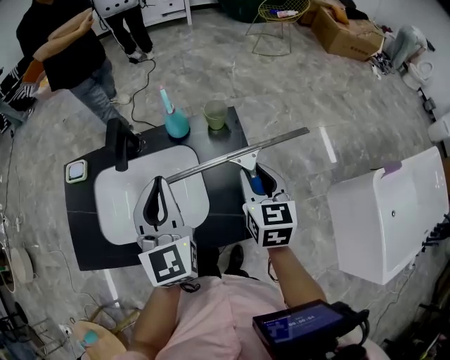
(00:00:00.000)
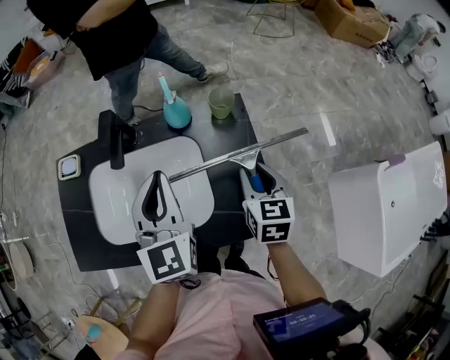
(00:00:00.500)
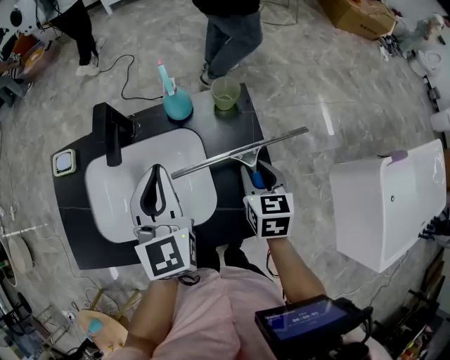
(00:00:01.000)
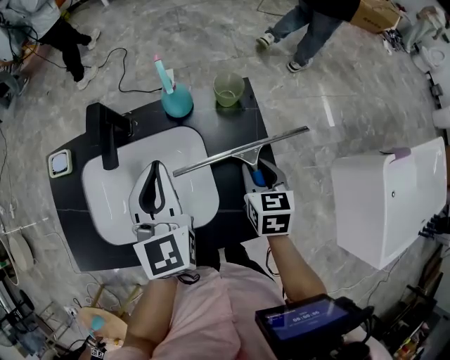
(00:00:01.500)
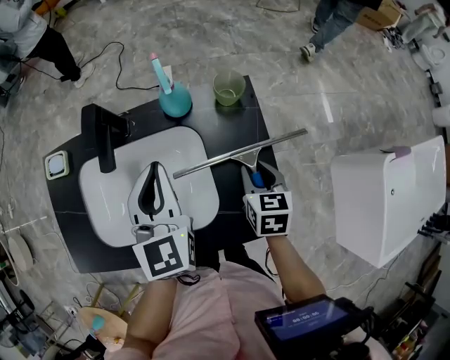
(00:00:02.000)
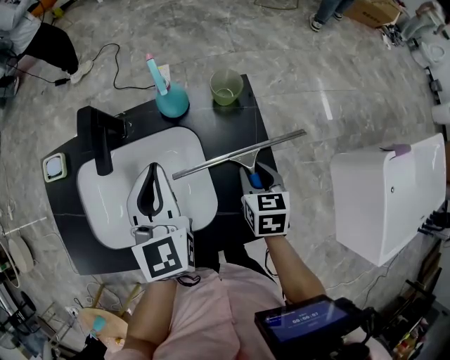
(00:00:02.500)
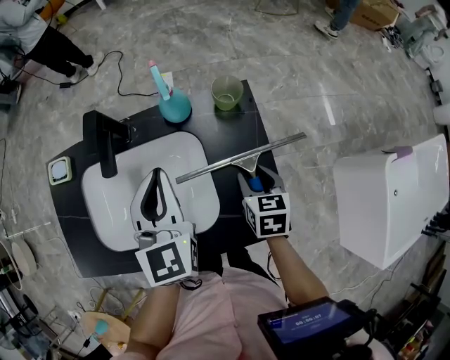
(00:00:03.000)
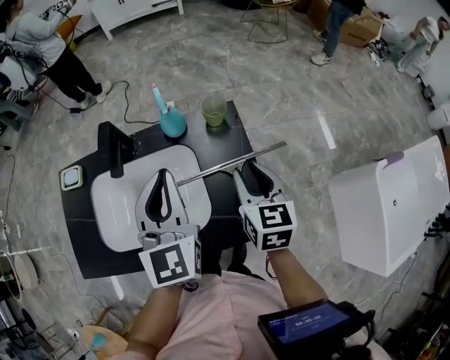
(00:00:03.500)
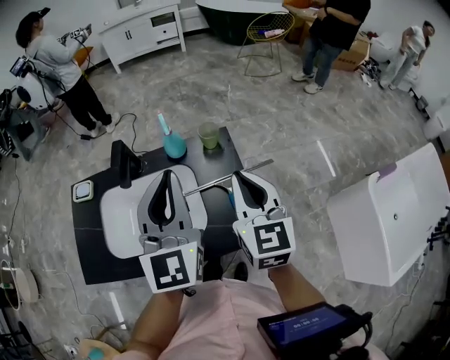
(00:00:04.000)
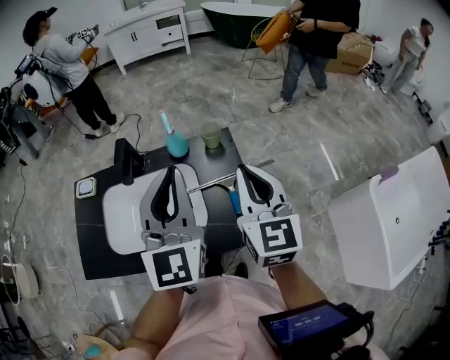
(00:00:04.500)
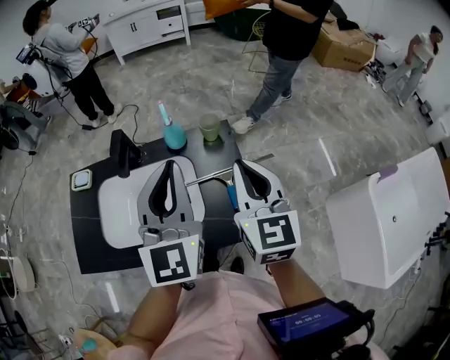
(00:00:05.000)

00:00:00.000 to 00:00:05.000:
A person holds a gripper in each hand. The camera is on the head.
00:00:00.000 to 00:00:02.500: The left gripper moves downward and forward, some 10 cm, while the right gripper goes roughly 15 cm downward, and changes its angle by approximately 20 degrees.
00:00:02.500 to 00:00:05.000: The right gripper moves upward, about 30 cm, points its fingers about 40 degrees further upward, and closes its fingers, while the left gripper is displaced upward, backward and to the right by some 20 cm, and swivels some 20 degrees.

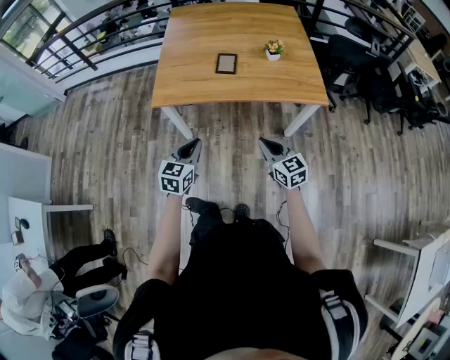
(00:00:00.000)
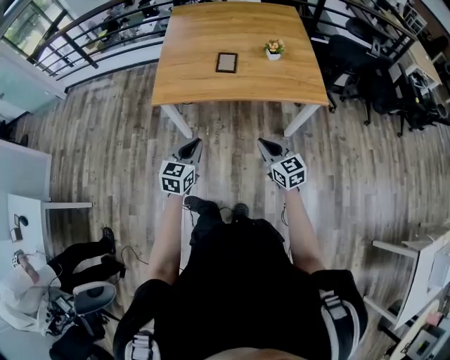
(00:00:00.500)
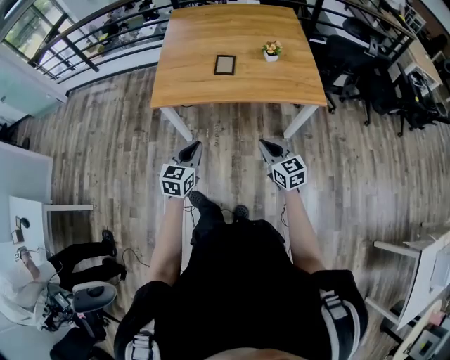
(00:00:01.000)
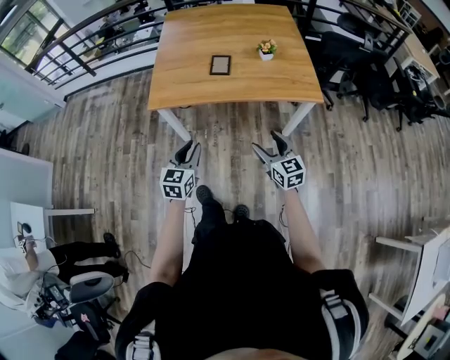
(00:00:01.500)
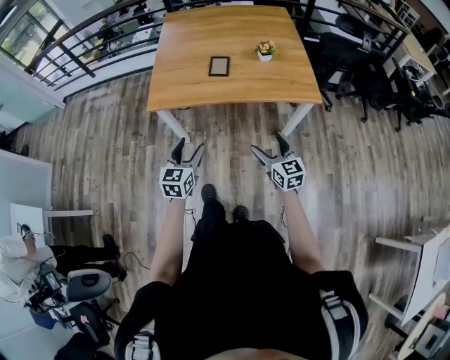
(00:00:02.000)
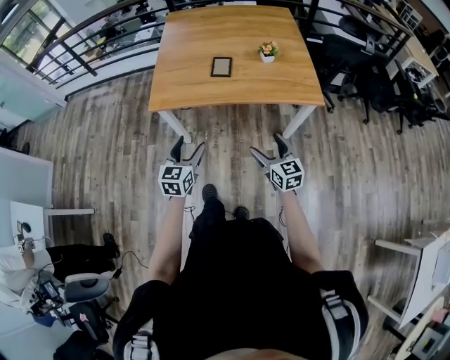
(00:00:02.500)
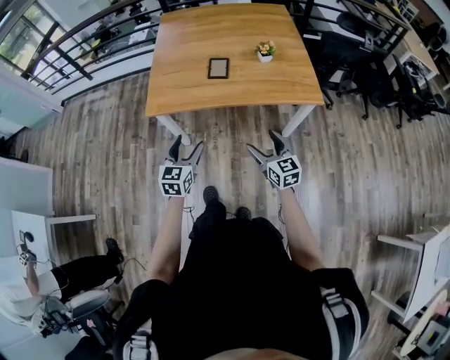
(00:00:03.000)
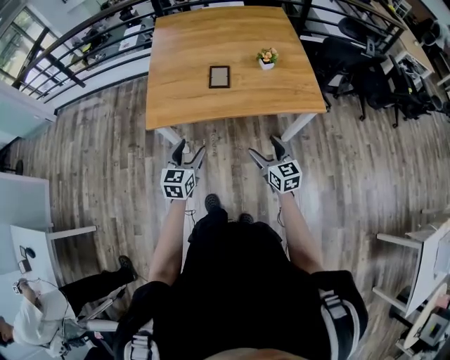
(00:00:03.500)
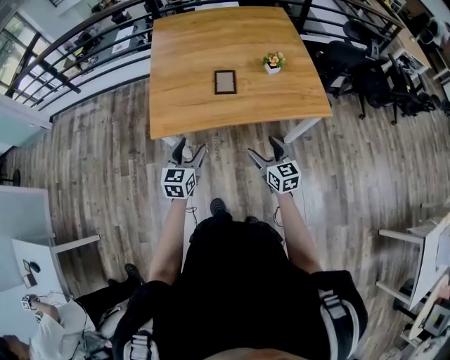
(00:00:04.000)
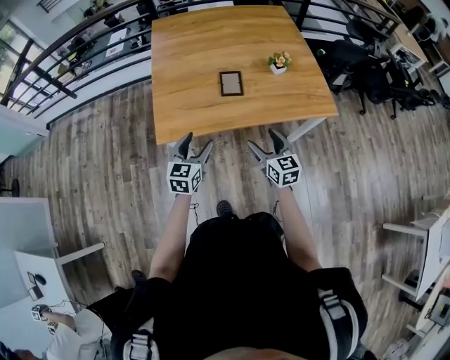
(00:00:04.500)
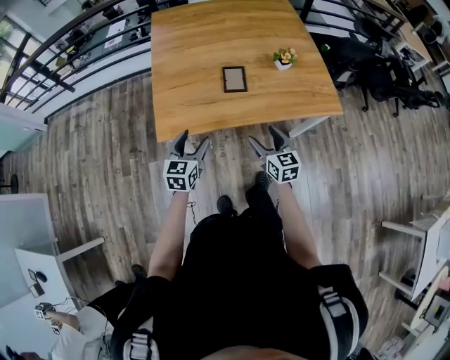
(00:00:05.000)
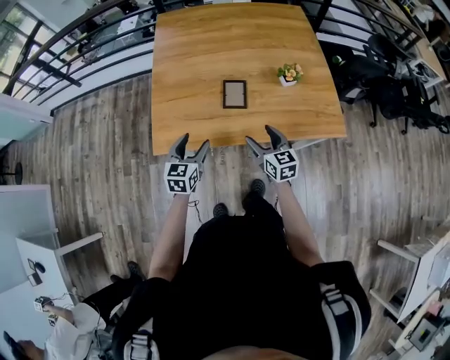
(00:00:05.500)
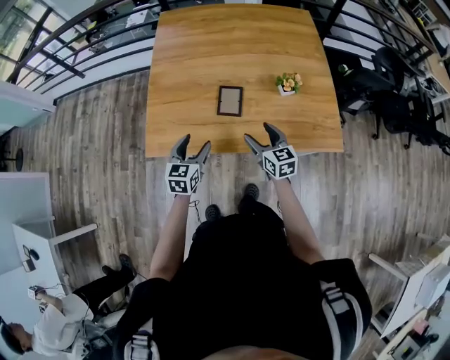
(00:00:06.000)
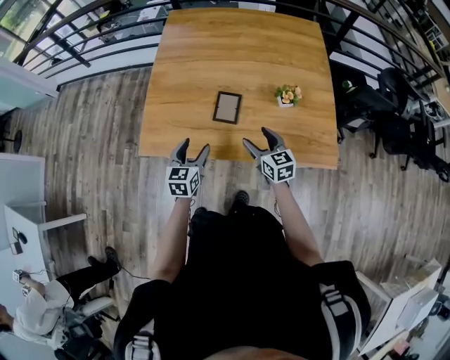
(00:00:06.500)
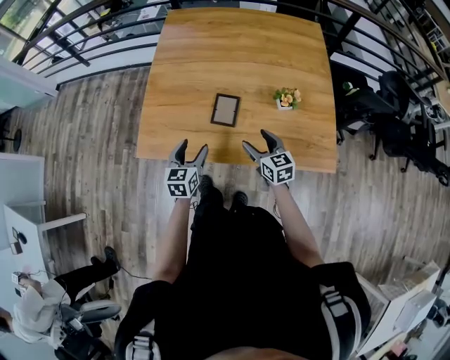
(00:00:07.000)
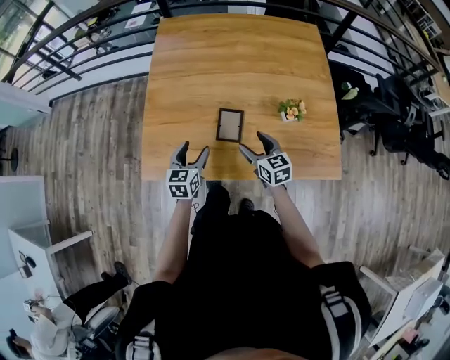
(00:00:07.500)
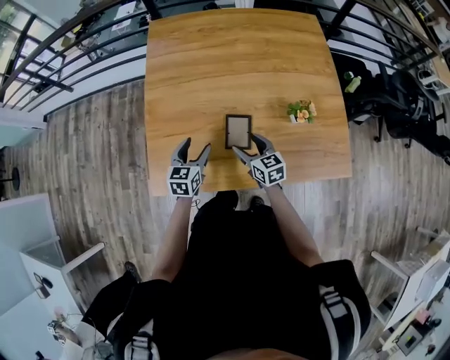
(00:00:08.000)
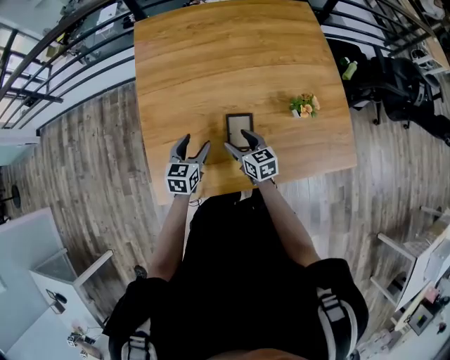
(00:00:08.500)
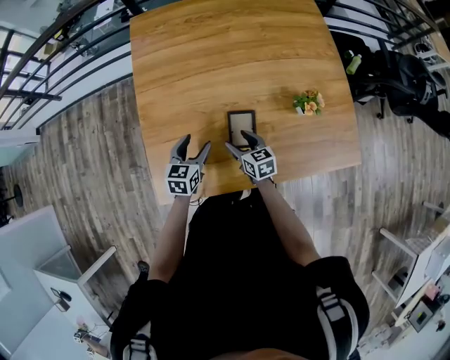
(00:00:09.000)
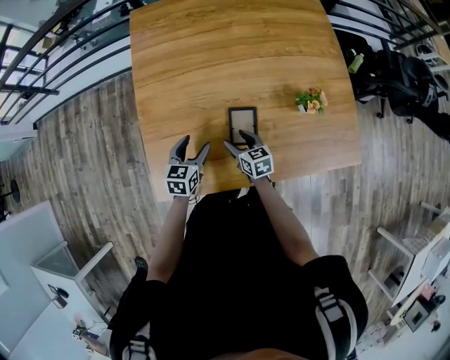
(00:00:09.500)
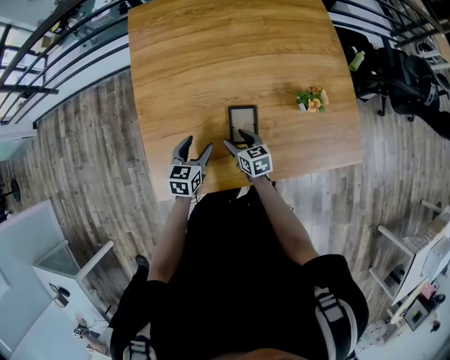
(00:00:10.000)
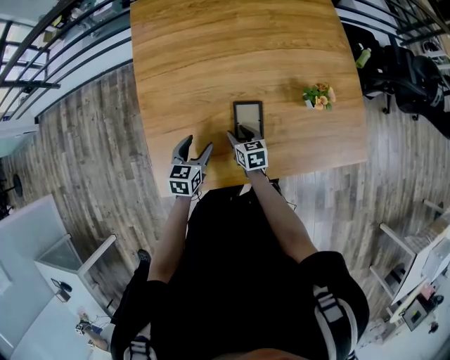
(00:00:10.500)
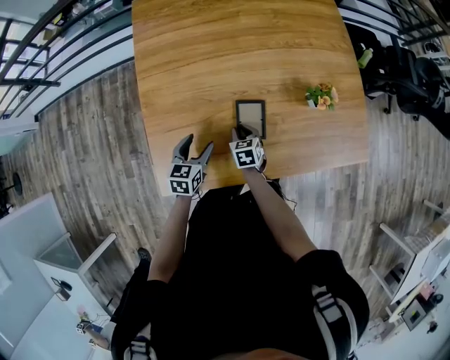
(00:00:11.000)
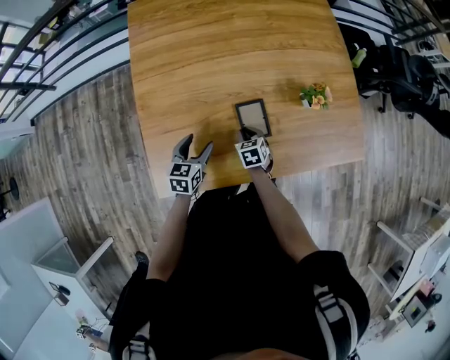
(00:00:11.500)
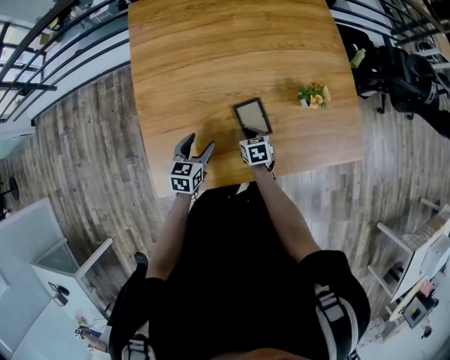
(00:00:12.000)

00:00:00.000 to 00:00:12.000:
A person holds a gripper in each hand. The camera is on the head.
00:00:00.000 to 00:00:02.000: The right gripper opens. The left gripper opens.
00:00:02.000 to 00:00:04.000: The right gripper shifts some 15 cm forward and to the left. The left gripper moves forward, some 15 cm.
00:00:04.000 to 00:00:06.000: Both grippers move forward, about 20 cm.
00:00:06.000 to 00:00:08.000: The right gripper heads forward and to the left, covering roughly 15 cm. The left gripper travels forward by roughly 20 cm.
00:00:08.000 to 00:00:10.000: The right gripper goes approximately 10 cm downward and to the left; the left gripper is displaced downward by some 5 cm.
00:00:10.000 to 00:00:12.000: The right gripper shifts by approximately 5 cm, turns by roughly 20 degrees, and closes its fingers.

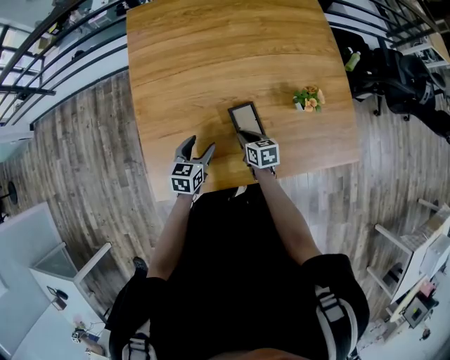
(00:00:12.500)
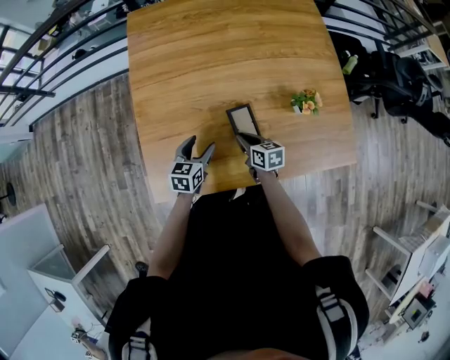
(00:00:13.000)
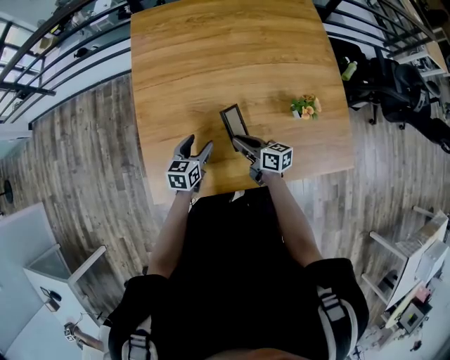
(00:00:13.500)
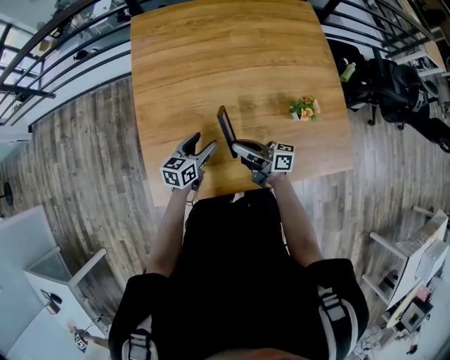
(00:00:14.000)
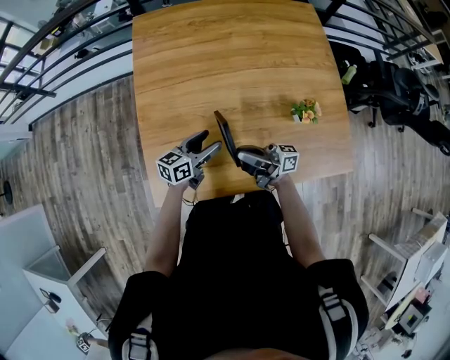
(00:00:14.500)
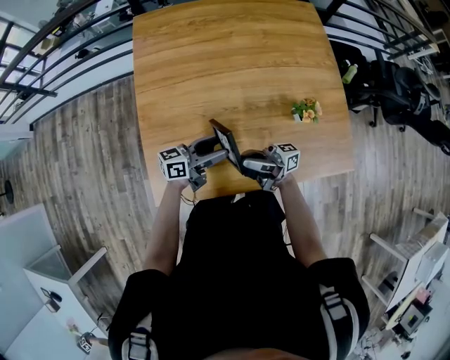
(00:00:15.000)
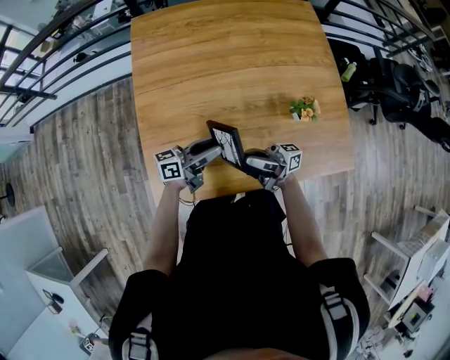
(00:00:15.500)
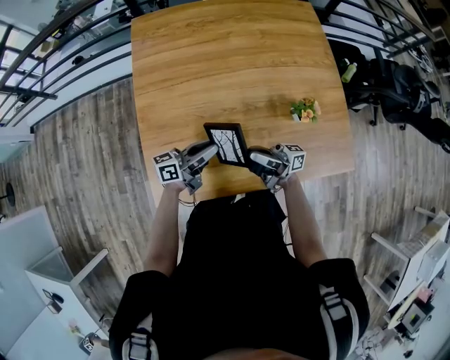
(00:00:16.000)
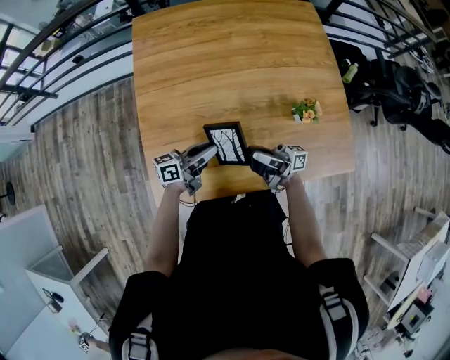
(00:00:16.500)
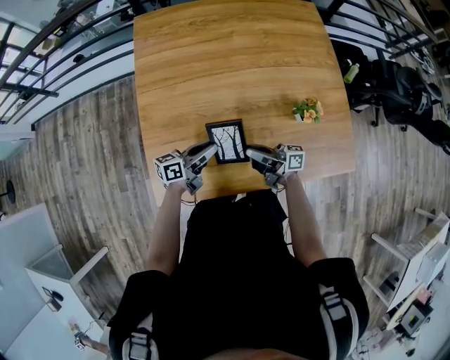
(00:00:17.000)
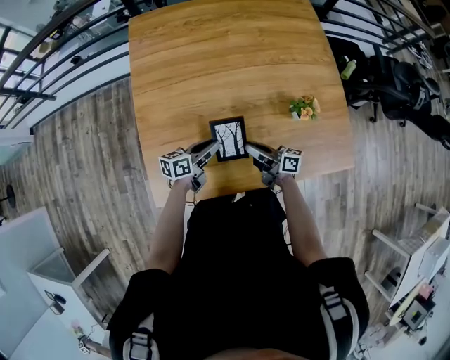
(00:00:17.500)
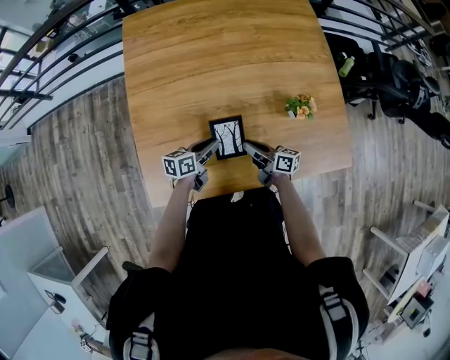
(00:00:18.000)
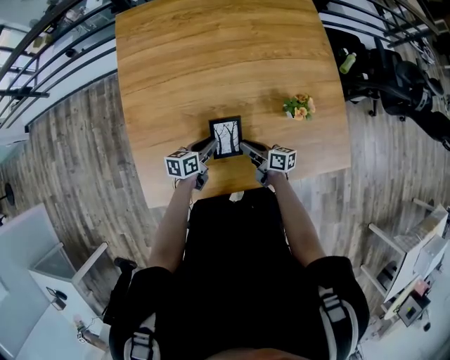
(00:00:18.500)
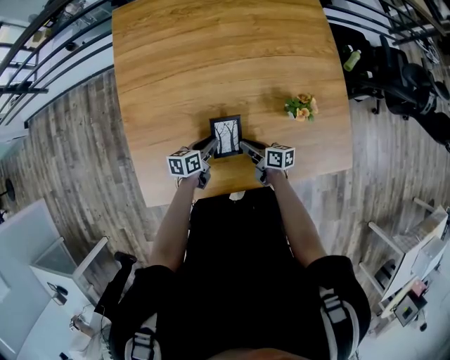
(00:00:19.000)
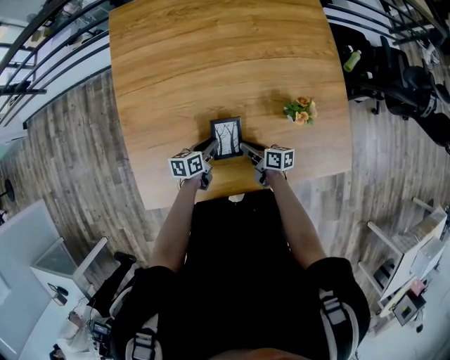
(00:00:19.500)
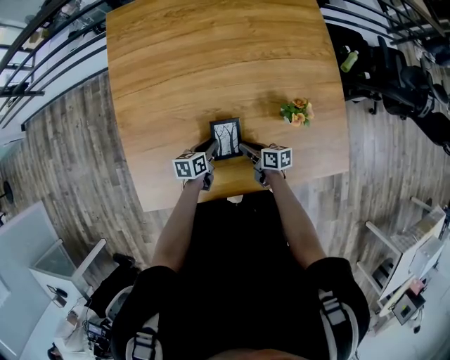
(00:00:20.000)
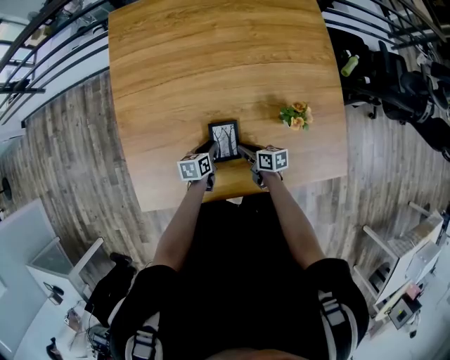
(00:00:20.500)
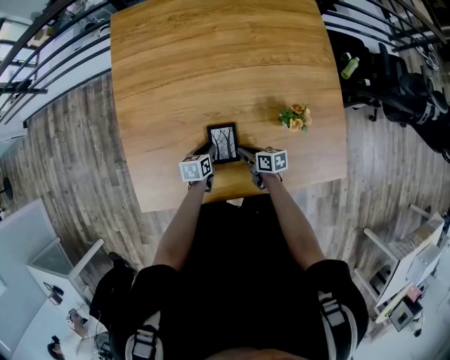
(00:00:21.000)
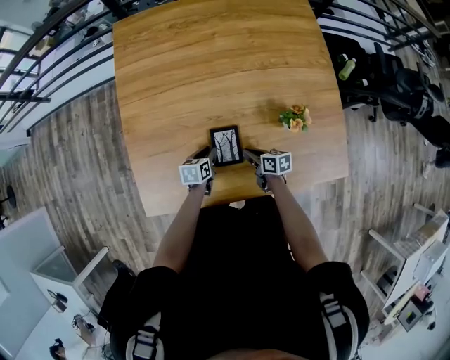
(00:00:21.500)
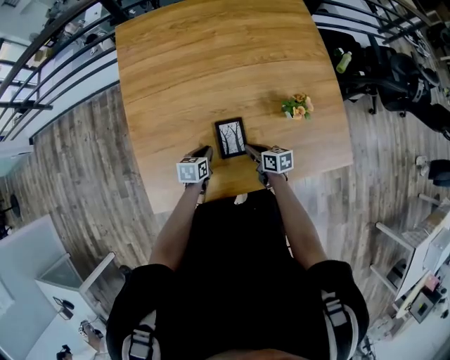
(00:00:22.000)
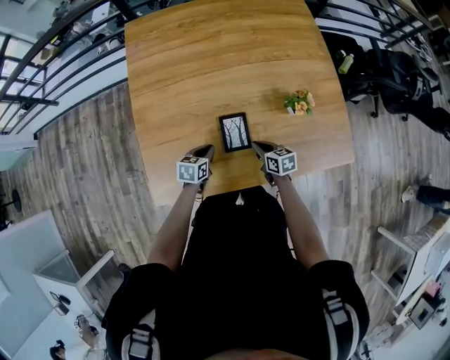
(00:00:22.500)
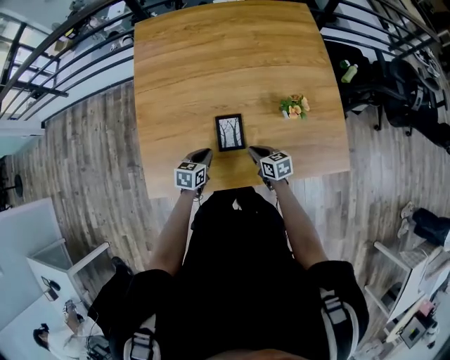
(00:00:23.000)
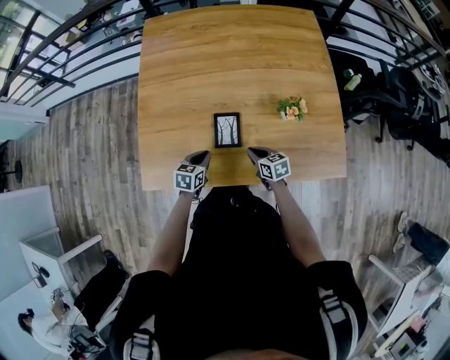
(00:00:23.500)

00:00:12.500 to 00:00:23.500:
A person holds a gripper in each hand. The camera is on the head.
00:00:12.500 to 00:00:14.500: The right gripper is displaced upward by approximately 20 cm, and tilts its fingers about 70 degrees upward. The left gripper travels upward by about 5 cm, and turns by roughly 30 degrees.
00:00:14.500 to 00:00:16.000: The left gripper rotates some 20 degrees, and closes its fingers.
00:00:16.000 to 00:00:18.000: The grippers both shift downward by about 10 cm. The right gripper angles its fingers downward, by some 40 degrees. Meanwhile the left gripper rotates some 30 degrees.
00:00:18.000 to 00:00:20.000: The two grippers go about 10 cm downward. The right gripper rotates about 20 degrees.
00:00:20.000 to 00:00:21.500: The grippers move only a little.
00:00:21.500 to 00:00:23.500: The right gripper is displaced backward by approximately 5 cm, and swivels some 30 degrees. Meanwhile the left gripper moves backward and upward, approximately 10 cm.
